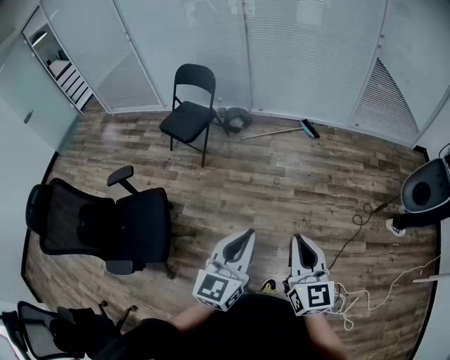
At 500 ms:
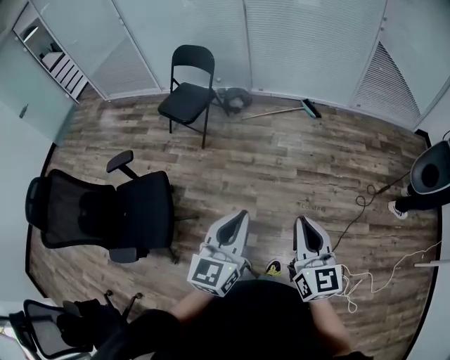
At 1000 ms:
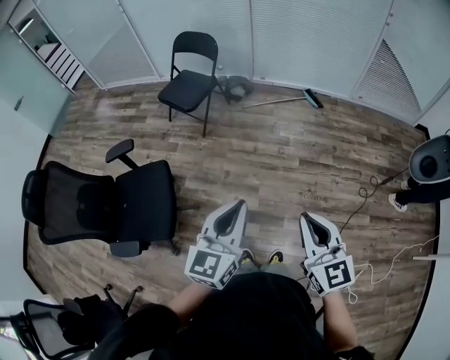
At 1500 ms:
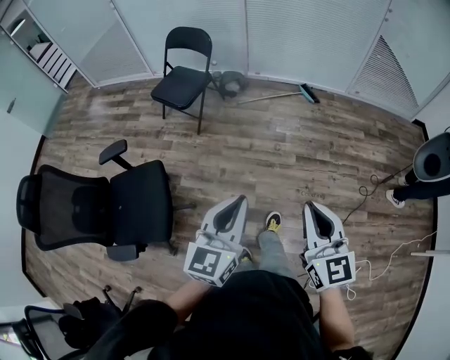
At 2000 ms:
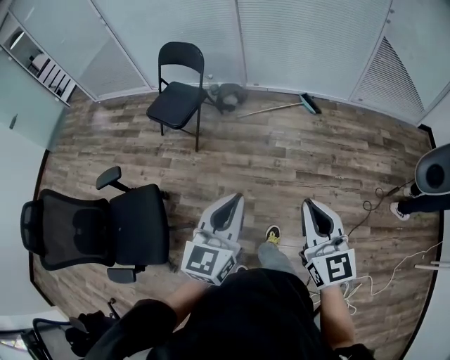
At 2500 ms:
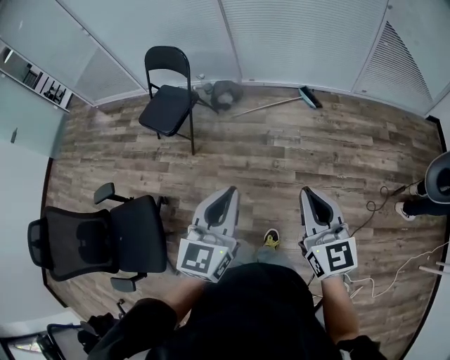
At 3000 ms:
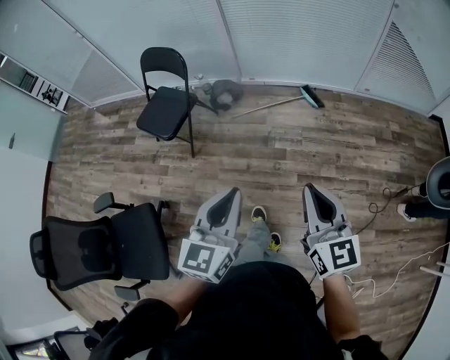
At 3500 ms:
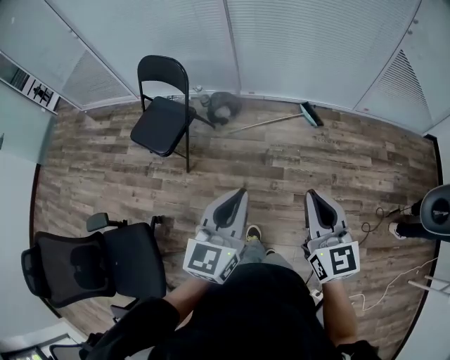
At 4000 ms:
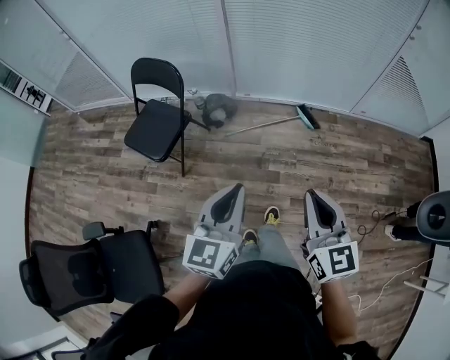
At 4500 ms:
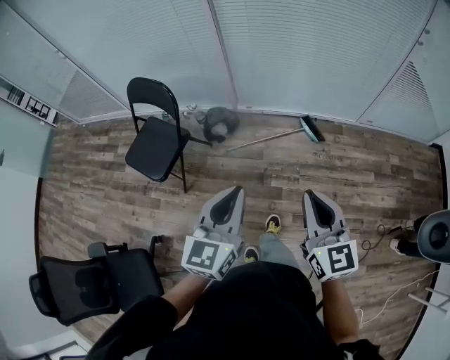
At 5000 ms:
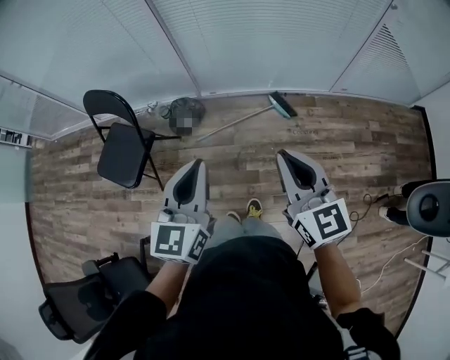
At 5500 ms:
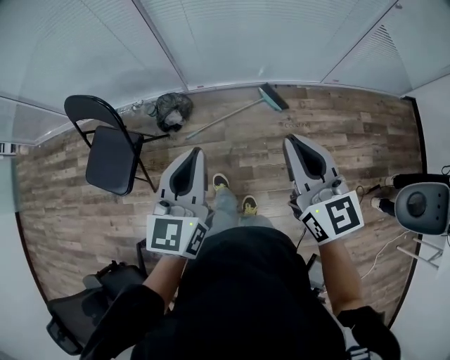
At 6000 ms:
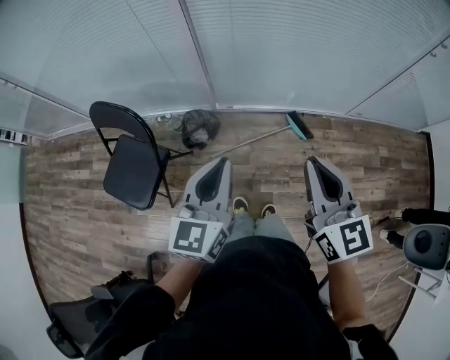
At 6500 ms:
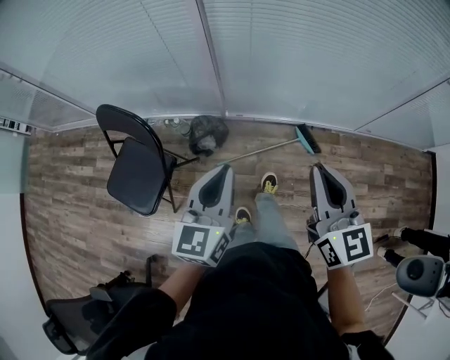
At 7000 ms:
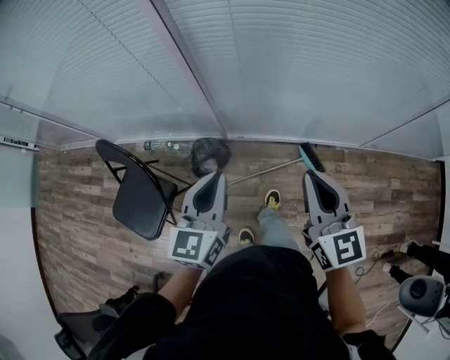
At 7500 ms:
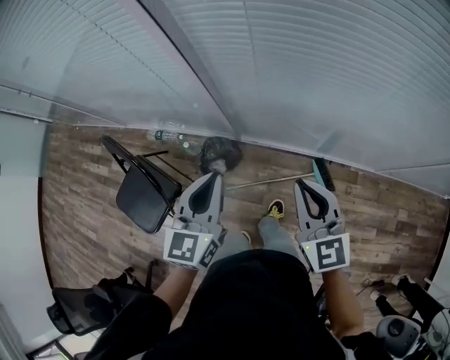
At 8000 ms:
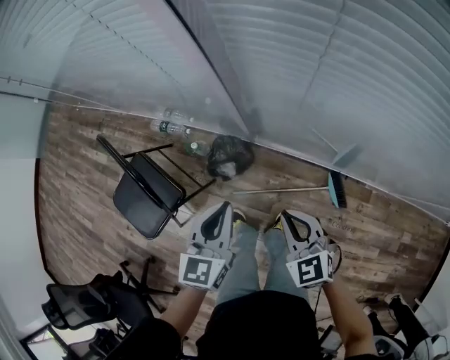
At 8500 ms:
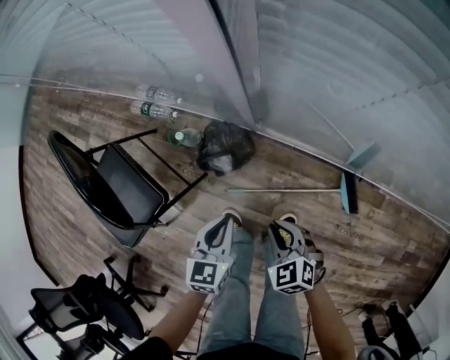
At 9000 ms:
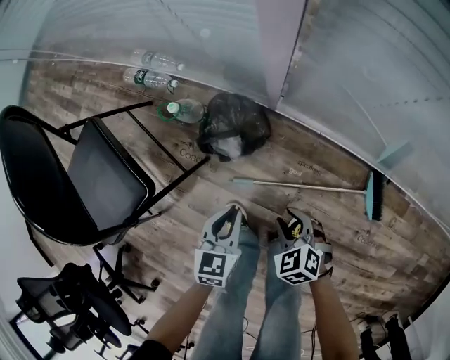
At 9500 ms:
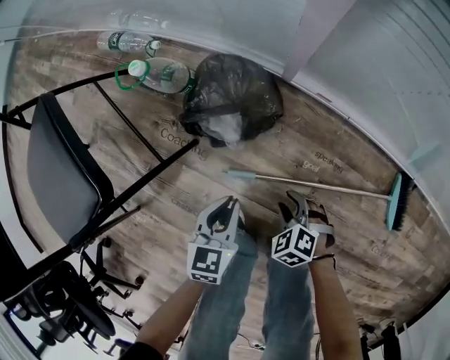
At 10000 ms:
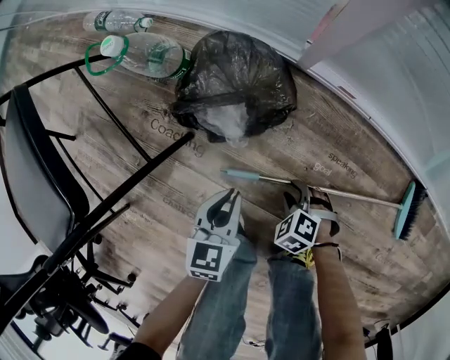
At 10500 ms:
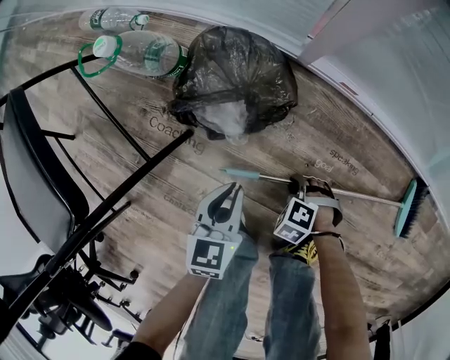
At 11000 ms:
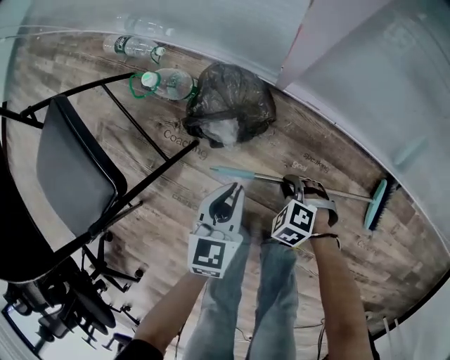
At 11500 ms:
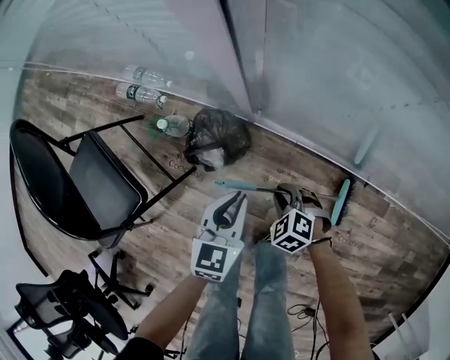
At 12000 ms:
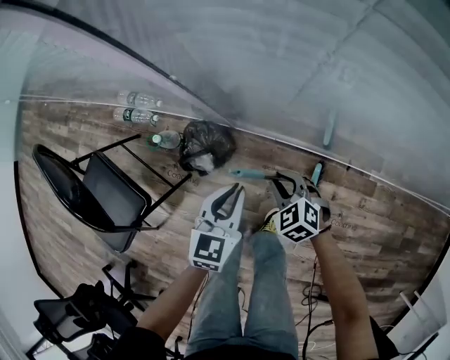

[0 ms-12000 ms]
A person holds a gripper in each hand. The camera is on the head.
0 ms to 2000 ms: Both grippers travel together forward, about 20 cm.
2000 ms to 4000 ms: Both grippers move forward, some 40 cm.
4000 ms to 6000 ms: Both grippers are carried forward, about 40 cm.
6000 ms to 8000 ms: Both grippers move forward and downward, some 40 cm. The left gripper rotates approximately 20 degrees. The right gripper turns by about 40 degrees.
8000 ms to 10000 ms: The grippers both shift downward by approximately 80 cm. The left gripper rotates some 30 degrees, while the right gripper tilts its fingers roughly 40 degrees downward, and opens its fingers.
10000 ms to 12000 ms: The two grippers go some 50 cm upward. The left gripper swivels roughly 30 degrees, while the right gripper changes its angle by some 30 degrees.

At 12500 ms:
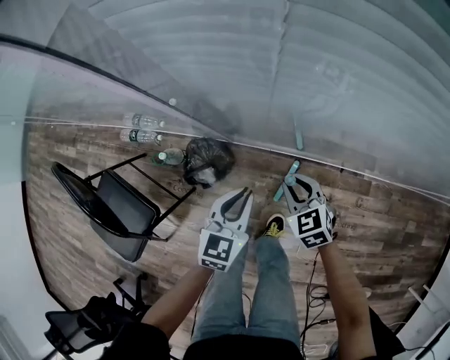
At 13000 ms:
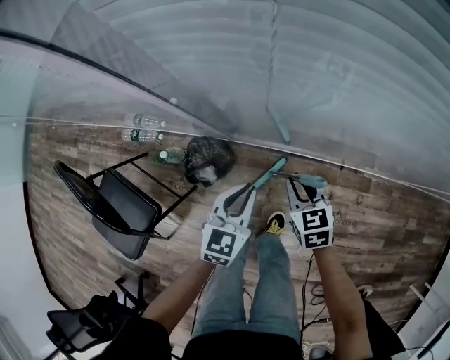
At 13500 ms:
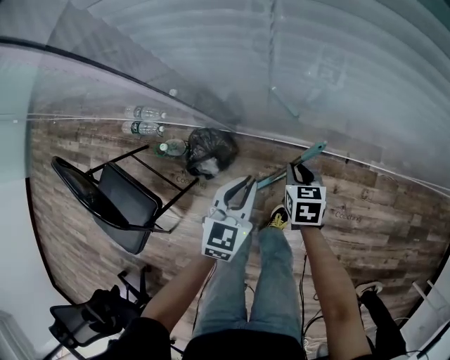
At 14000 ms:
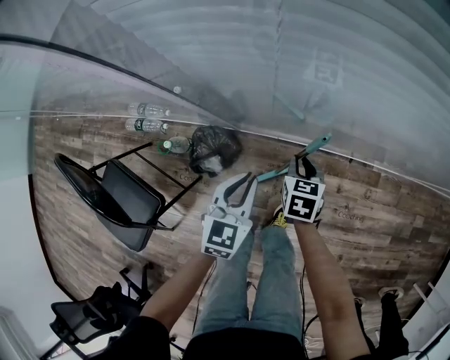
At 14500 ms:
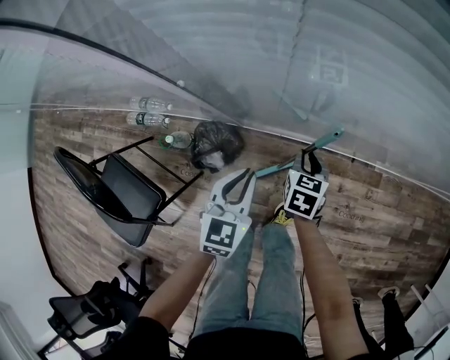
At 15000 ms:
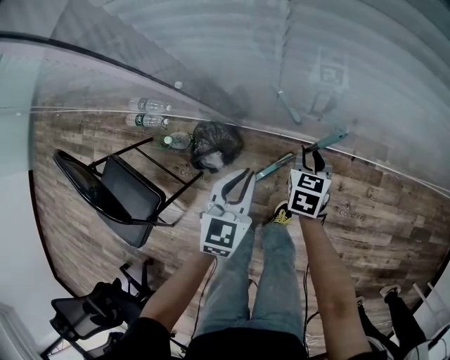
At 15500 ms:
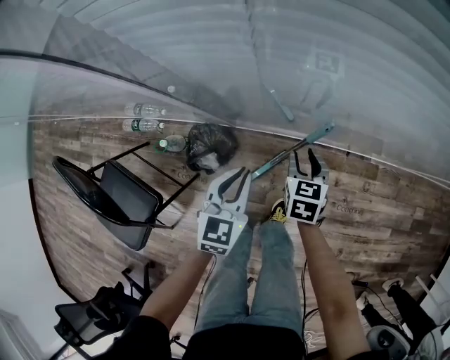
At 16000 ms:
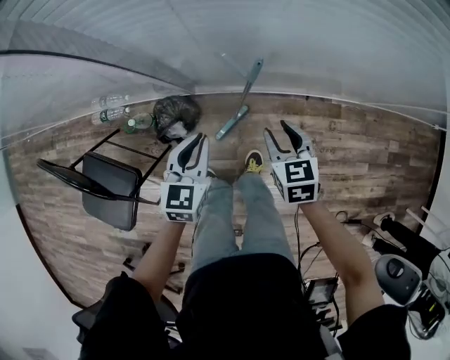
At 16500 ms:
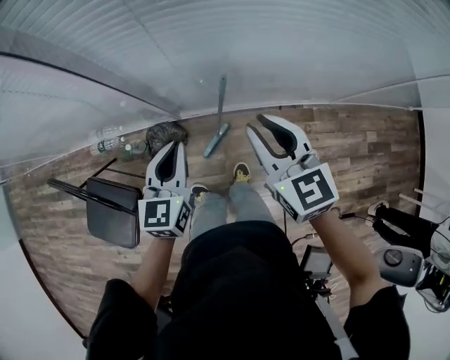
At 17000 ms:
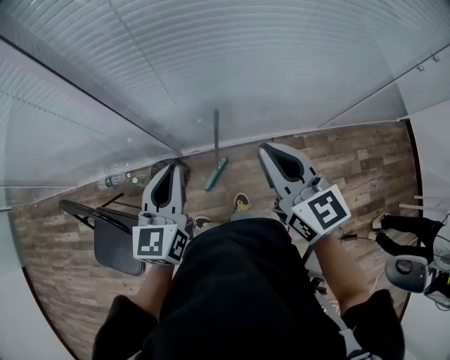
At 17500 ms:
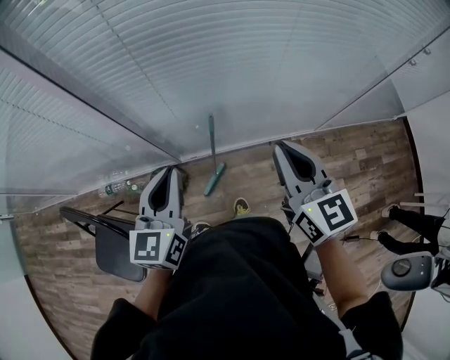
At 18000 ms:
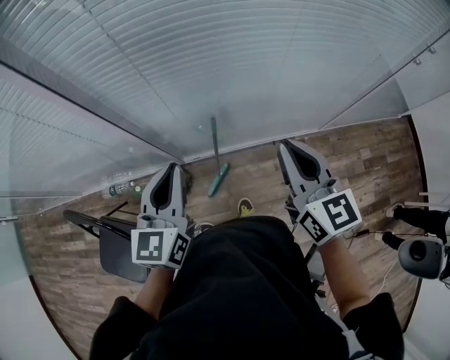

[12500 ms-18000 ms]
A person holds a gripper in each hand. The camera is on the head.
12500 ms to 14500 ms: The right gripper ends up roughly 5 cm from where it was, and swivels roughly 40 degrees.
14500 ms to 16000 ms: The left gripper is displaced upward by about 10 cm. The right gripper heads upward, backward and to the right, covering approximately 20 cm.
16000 ms to 18000 ms: Both grippers travel together upward, some 35 cm. The left gripper swivels approximately 20 degrees, while the right gripper points its fingers about 40 degrees further upward, and closes up.

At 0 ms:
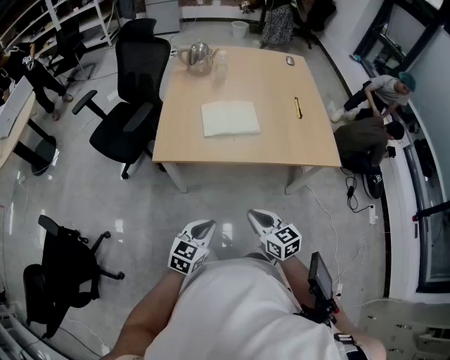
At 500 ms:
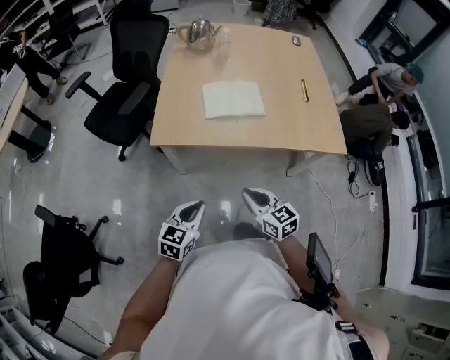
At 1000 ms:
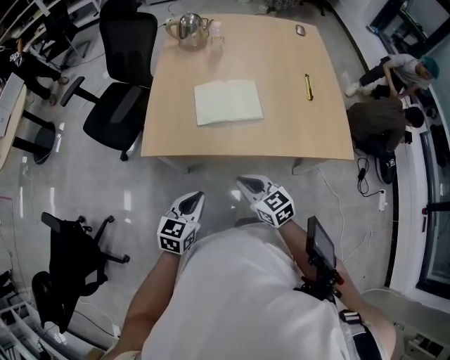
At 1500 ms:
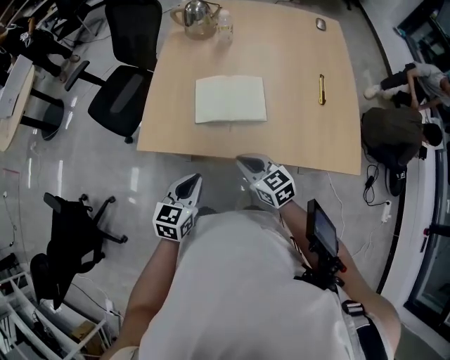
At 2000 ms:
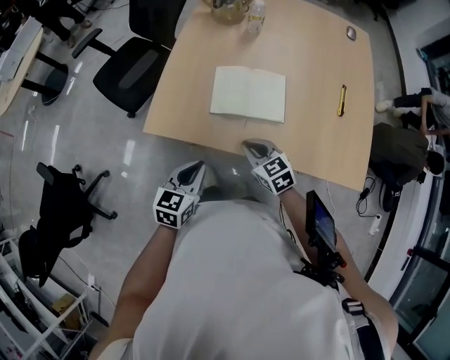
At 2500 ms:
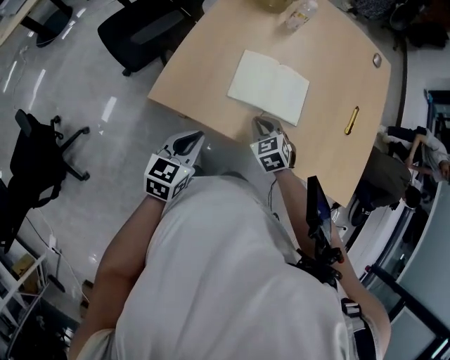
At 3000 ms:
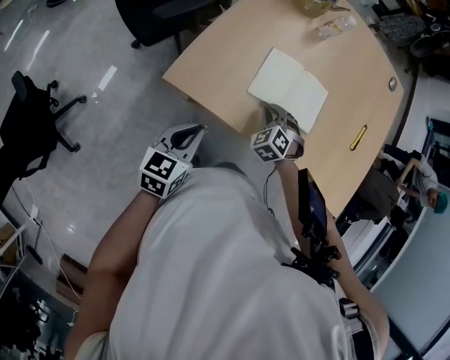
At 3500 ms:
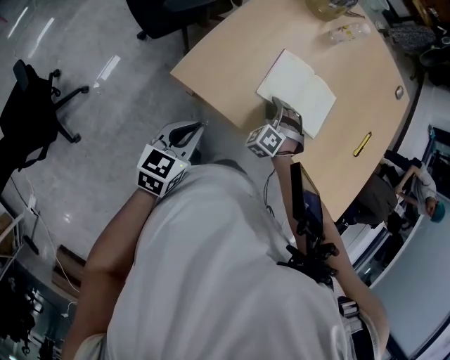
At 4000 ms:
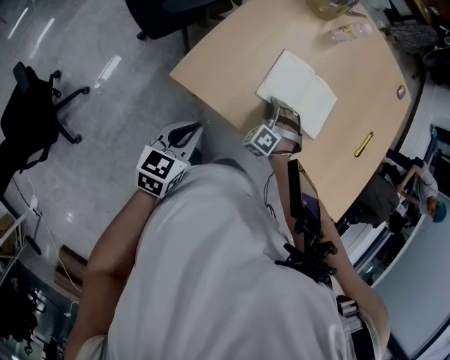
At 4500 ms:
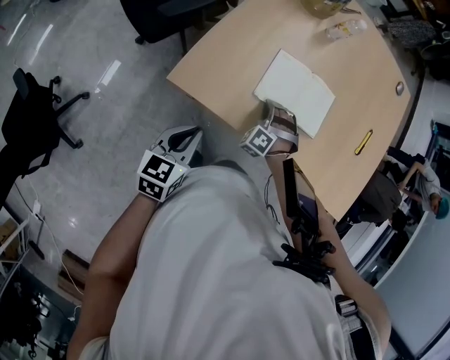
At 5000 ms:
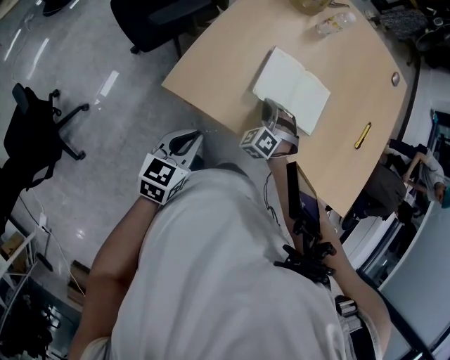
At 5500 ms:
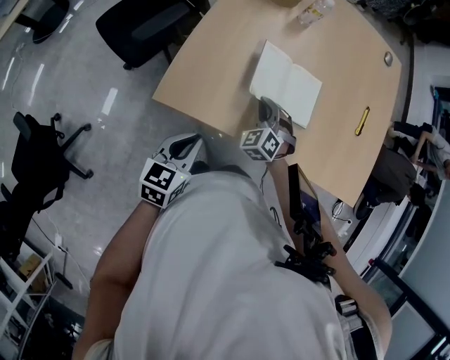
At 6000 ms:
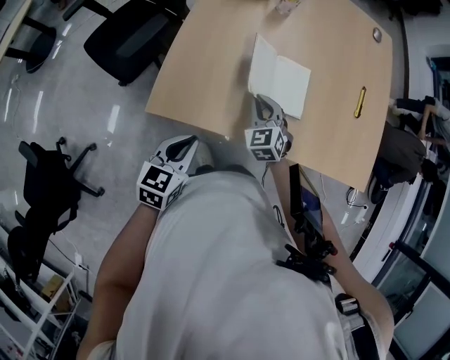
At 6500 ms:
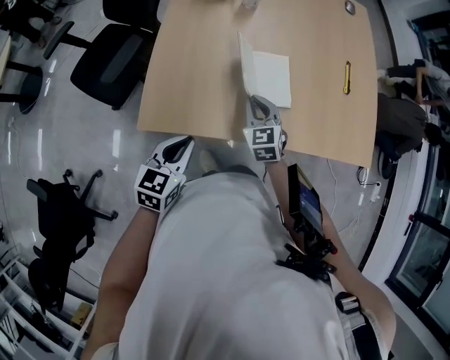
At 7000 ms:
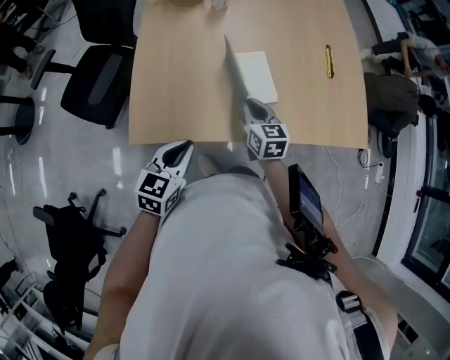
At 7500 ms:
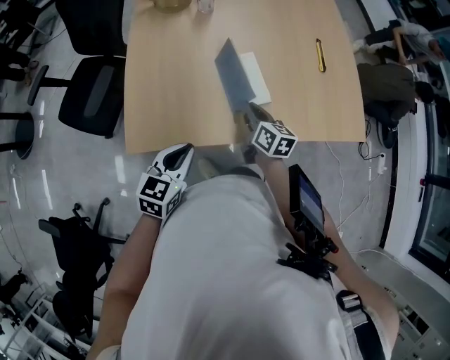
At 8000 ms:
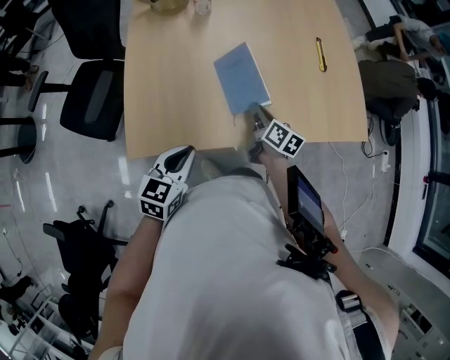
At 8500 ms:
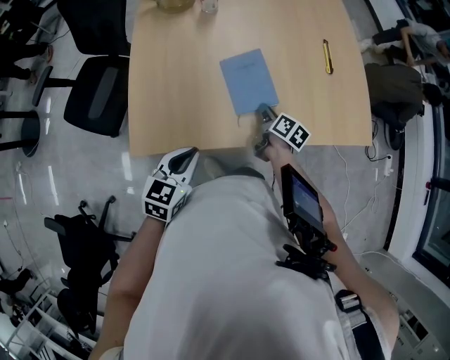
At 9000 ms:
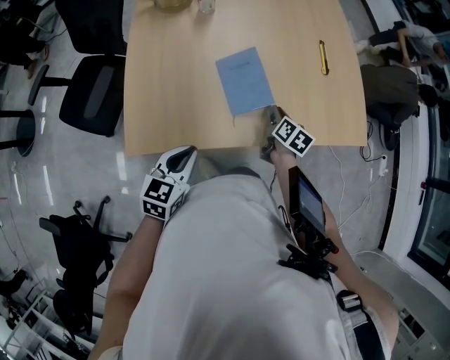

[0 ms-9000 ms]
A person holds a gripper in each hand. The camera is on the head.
0 ms to 2000 ms: The grippers both shift forward by roughly 25 cm. The left gripper rotates about 20 degrees. The right gripper rotates some 30 degrees.
2000 ms to 4500 ms: The left gripper is displaced to the left by approximately 10 cm; the right gripper moves downward, forward and to the left, some 20 cm, and rotates around the line of its fingers by about 70 degrees, counterclockwise from behind.
4500 ms to 7000 ms: The left gripper travels to the right and forward by roughly 10 cm, and turns by about 30 degrees; the right gripper travels upward and to the right by approximately 15 cm, and twists about 100 degrees clockwise, seen from behind.
7000 ms to 9000 ms: The right gripper moves to the right and downward, some 15 cm, and changes its angle by approximately 40 degrees.
